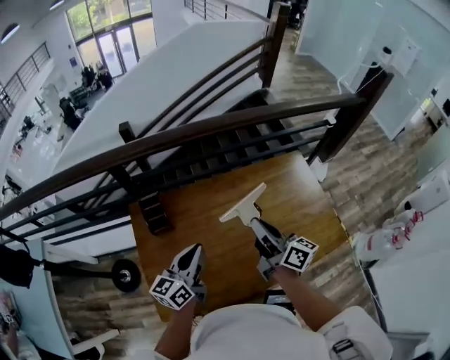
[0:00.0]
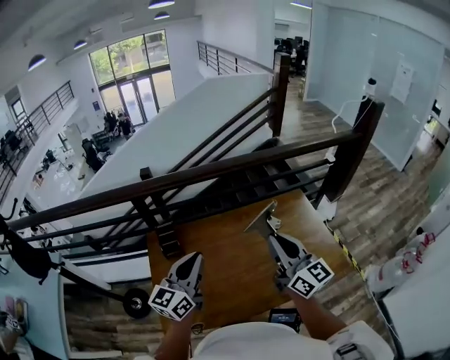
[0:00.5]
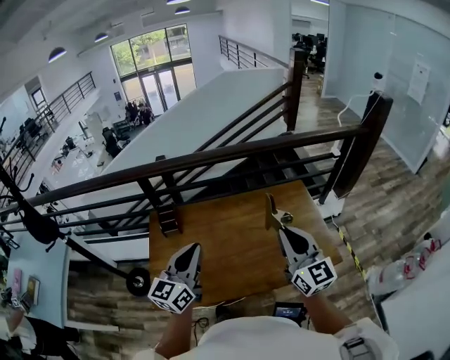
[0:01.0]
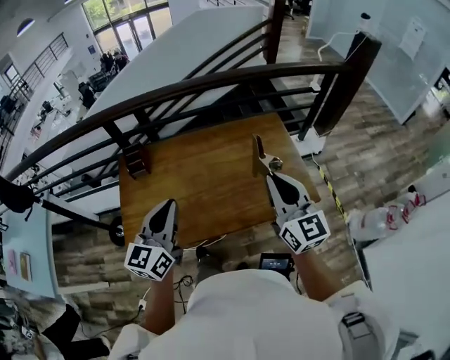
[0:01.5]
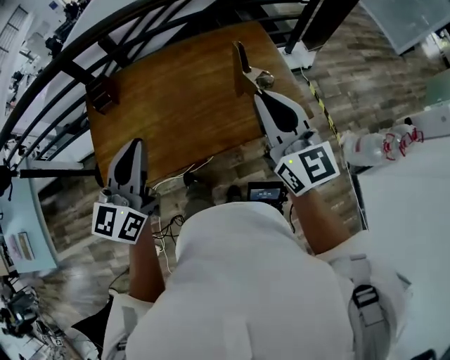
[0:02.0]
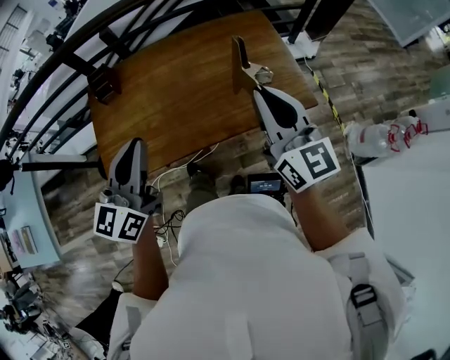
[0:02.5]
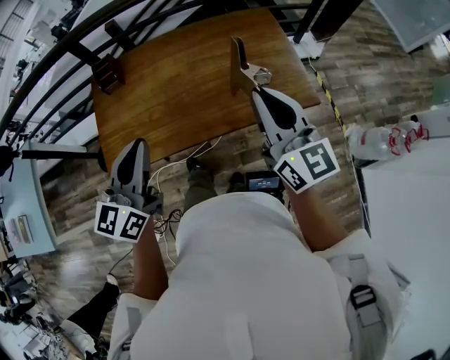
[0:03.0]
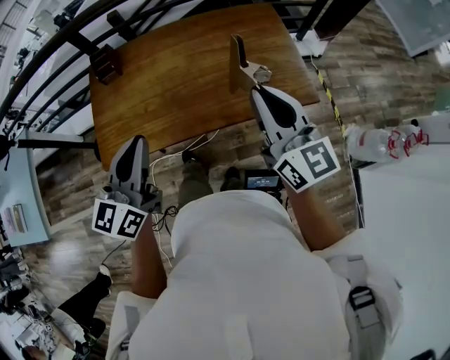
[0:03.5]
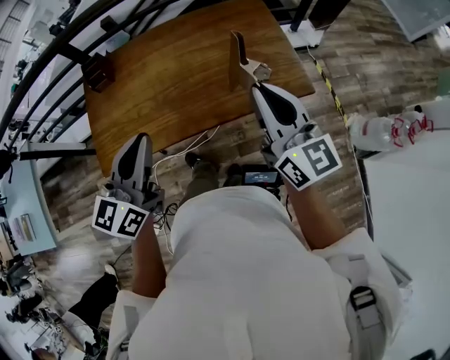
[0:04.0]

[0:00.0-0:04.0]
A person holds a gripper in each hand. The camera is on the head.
0:00.0 to 0:02.0: The right gripper heads to the right and backward, covering approximately 30 cm, and rotates around the line of its fingers by about 50 degrees, counterclockwise from behind, while the left gripper goes some 30 cm backward, to the right and upward, and turns by about 20 degrees.
0:02.0 to 0:04.0: The right gripper is displaced backward by approximately 5 cm; the left gripper travels backward and to the right by approximately 10 cm.

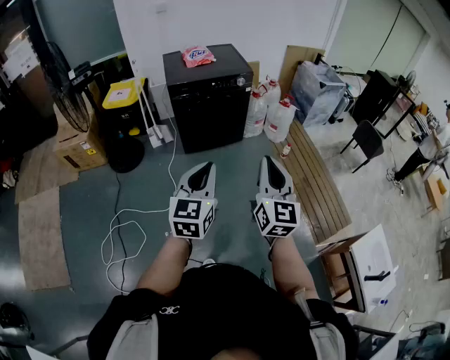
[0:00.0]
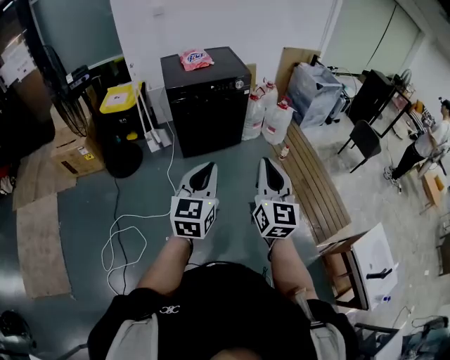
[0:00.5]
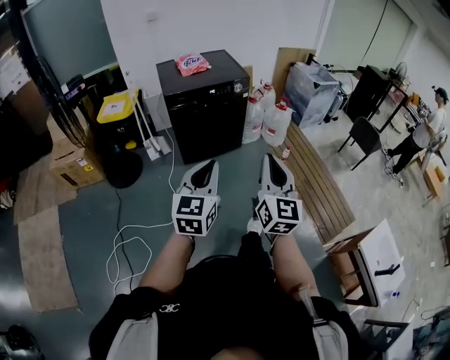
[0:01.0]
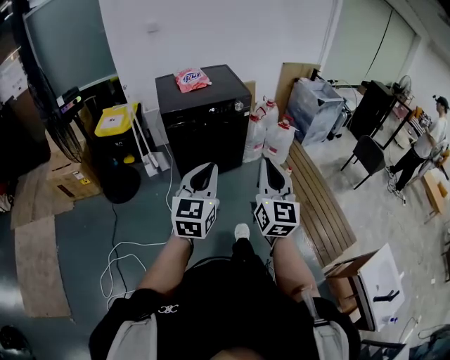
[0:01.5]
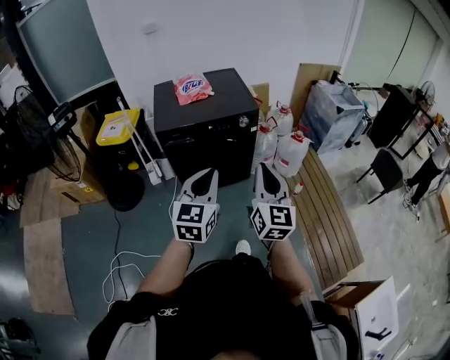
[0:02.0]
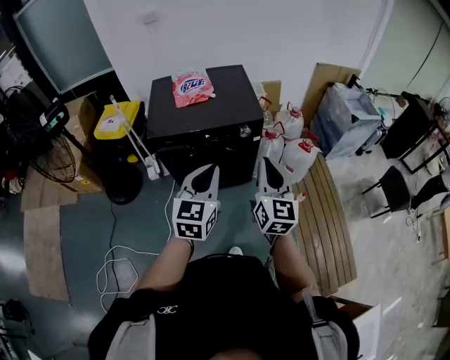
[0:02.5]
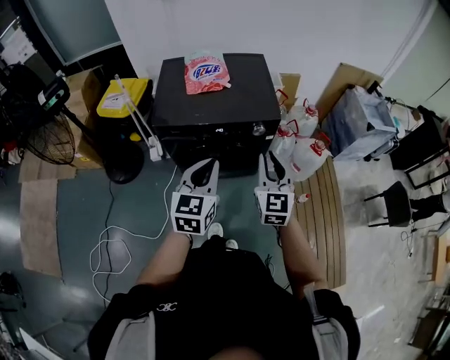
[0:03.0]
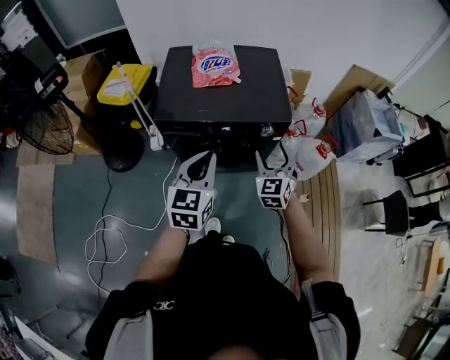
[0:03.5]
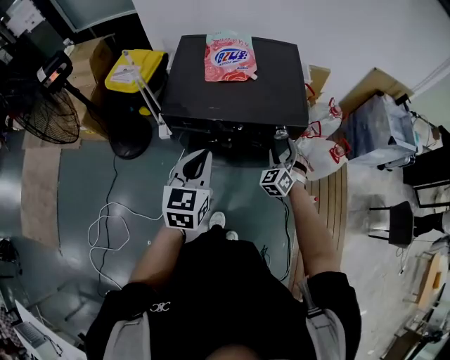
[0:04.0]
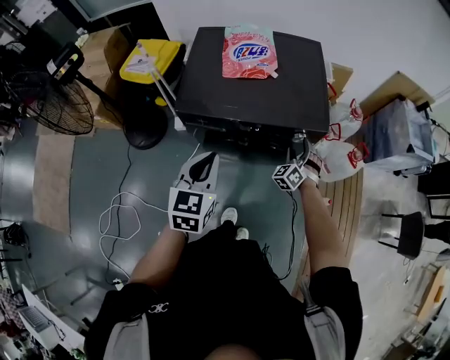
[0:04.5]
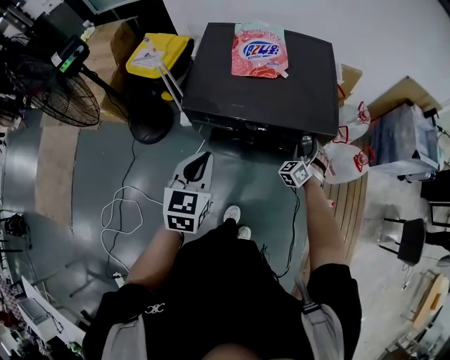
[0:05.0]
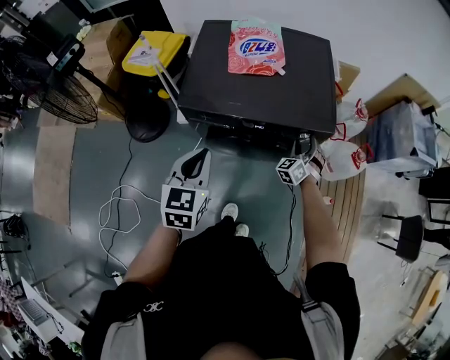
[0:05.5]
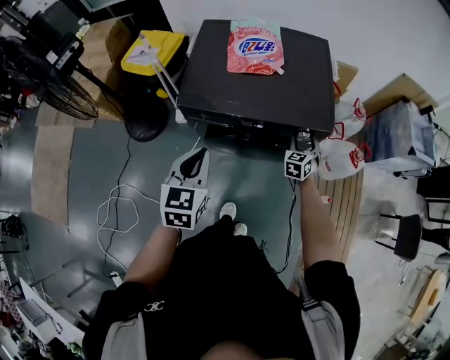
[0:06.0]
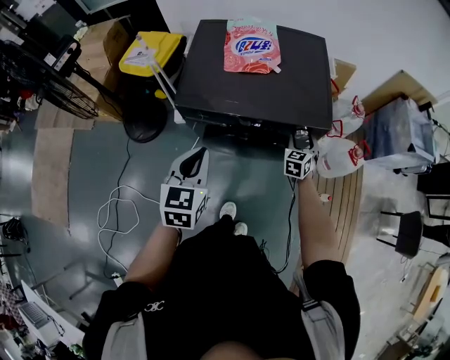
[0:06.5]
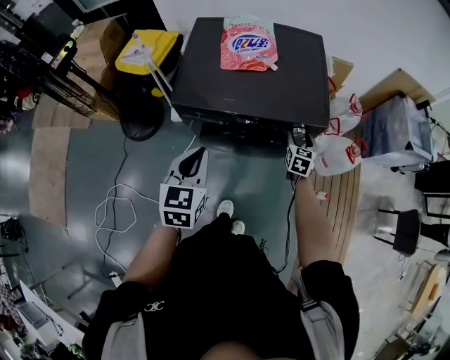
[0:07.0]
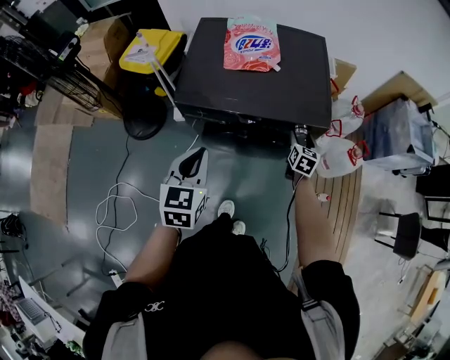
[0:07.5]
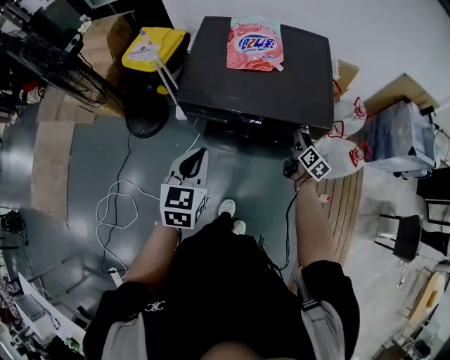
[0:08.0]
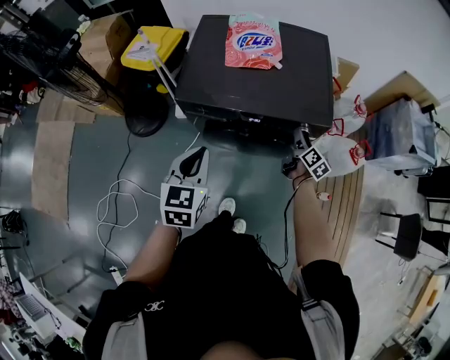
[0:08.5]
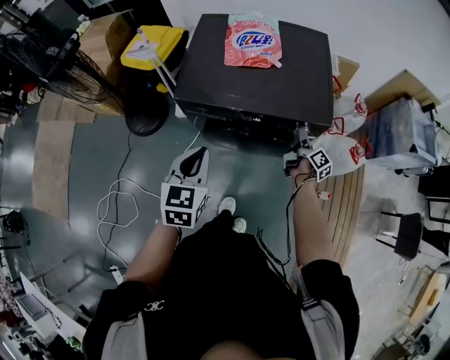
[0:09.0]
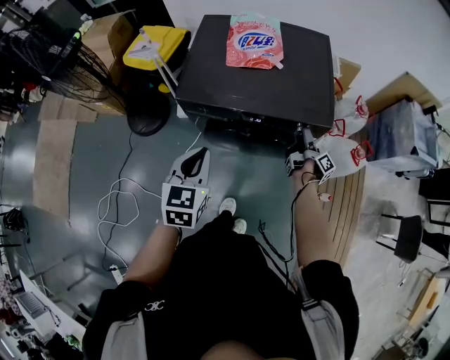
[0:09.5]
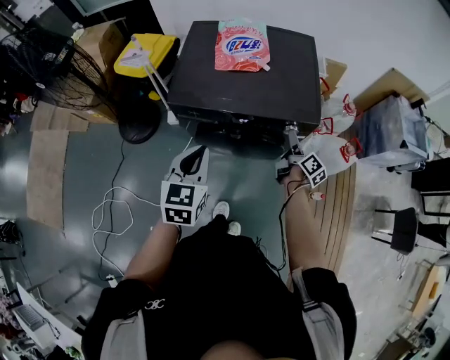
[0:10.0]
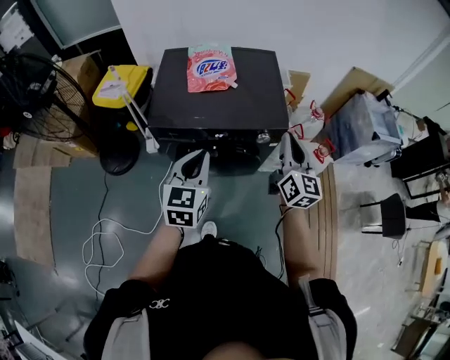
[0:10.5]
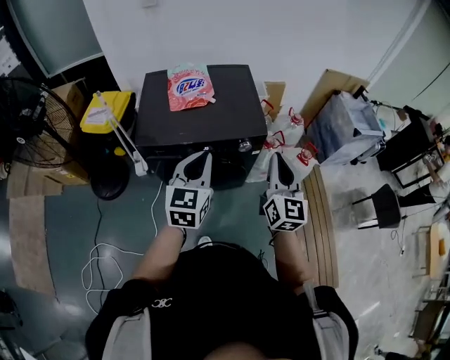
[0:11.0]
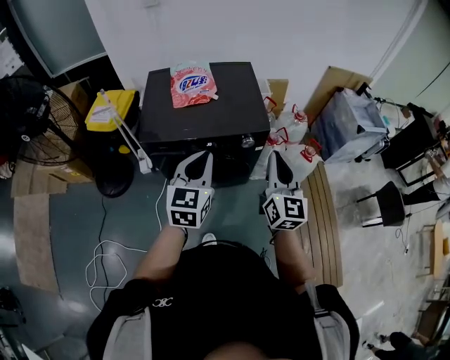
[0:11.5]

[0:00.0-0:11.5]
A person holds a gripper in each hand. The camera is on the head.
0:00.0 to 0:02.0: Both grippers travel together forward, about 35 cm.
0:02.0 to 0:04.0: The left gripper goes approximately 30 cm forward, and changes its angle by about 20 degrees; the right gripper goes some 50 cm forward and downward, rolls counterclockwise, seen from behind, by roughly 60 degrees, and opens.
0:04.0 to 0:06.0: The right gripper travels forward and downward by about 10 cm, and changes its angle by approximately 30 degrees; the left gripper is displaced to the left by some 5 cm.
0:06.0 to 0:07.5: The right gripper turns by about 30 degrees.
0:07.5 to 0:09.5: The right gripper rolls clockwise, seen from behind, by about 80 degrees.
0:09.5 to 0:11.5: The left gripper goes some 15 cm to the right and upward, and turns by some 20 degrees. Meanwhile the right gripper heads upward and backward, covering about 40 cm, rolls counterclockwise, seen from behind, by approximately 90 degrees, and closes up.

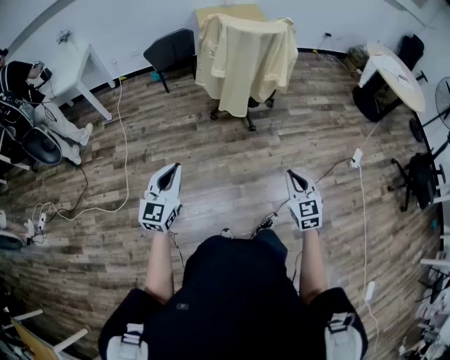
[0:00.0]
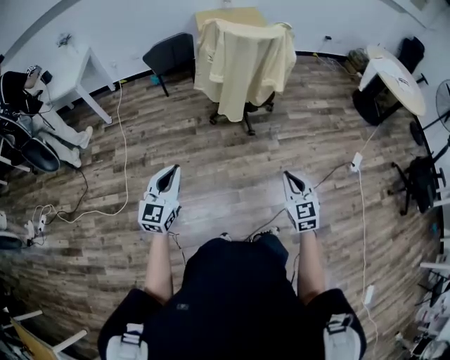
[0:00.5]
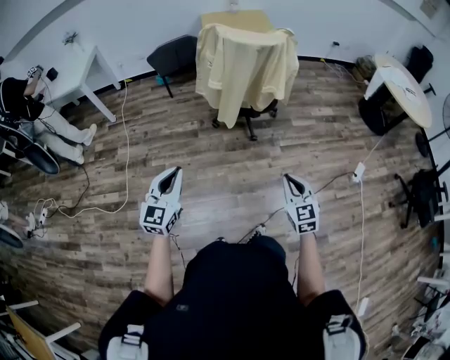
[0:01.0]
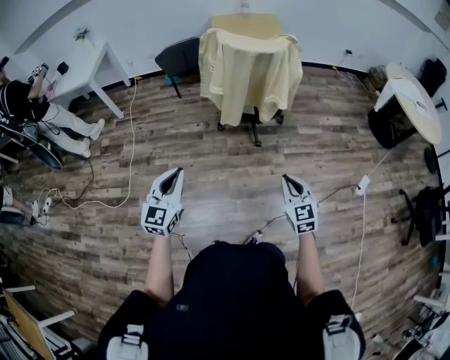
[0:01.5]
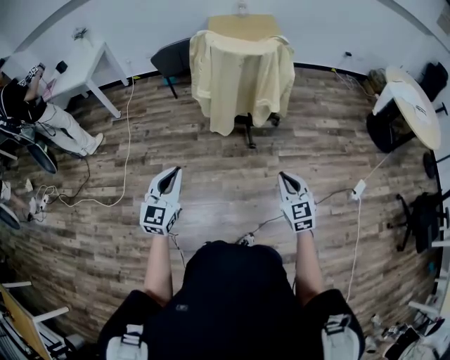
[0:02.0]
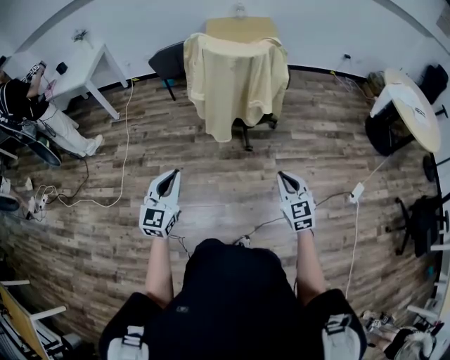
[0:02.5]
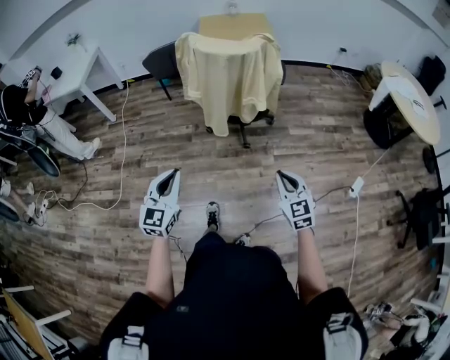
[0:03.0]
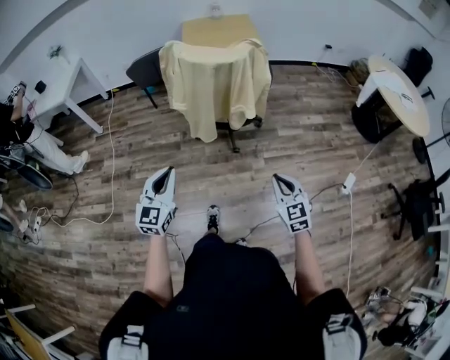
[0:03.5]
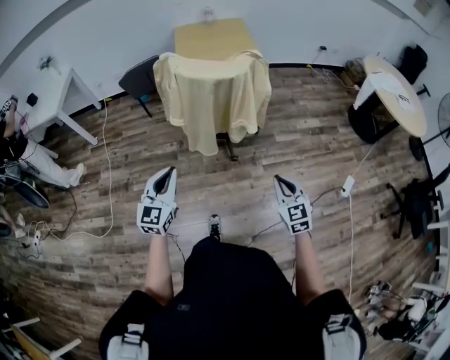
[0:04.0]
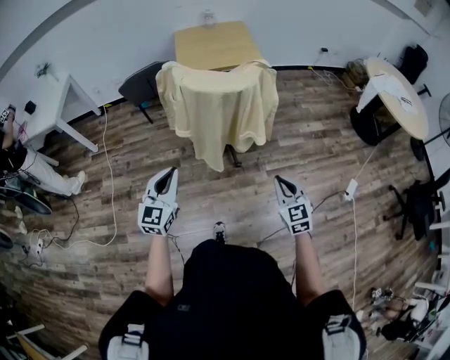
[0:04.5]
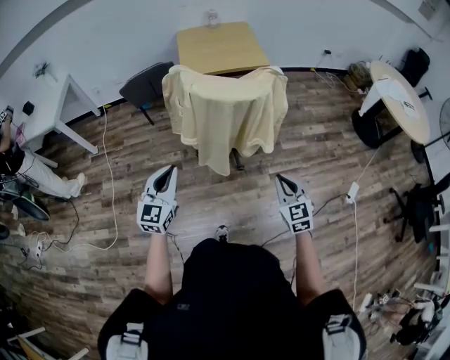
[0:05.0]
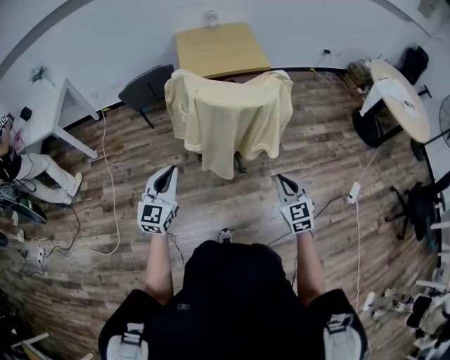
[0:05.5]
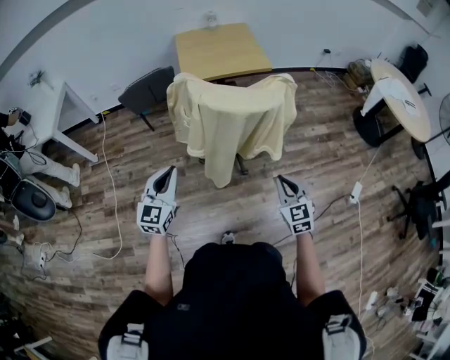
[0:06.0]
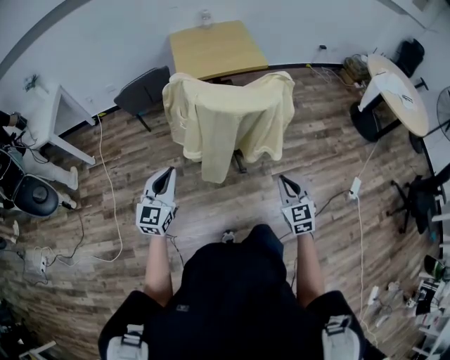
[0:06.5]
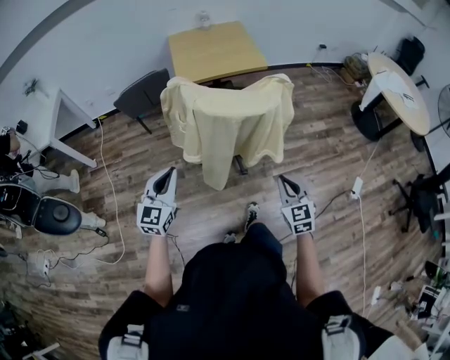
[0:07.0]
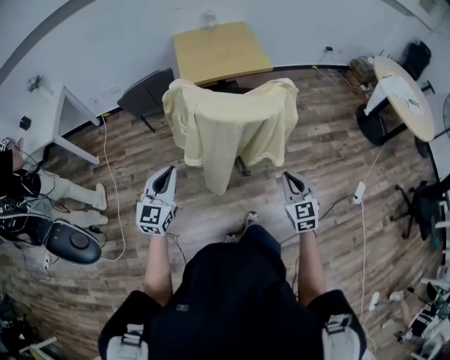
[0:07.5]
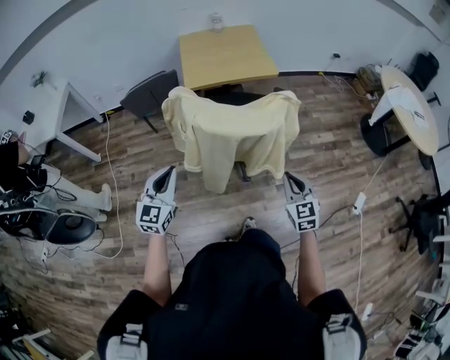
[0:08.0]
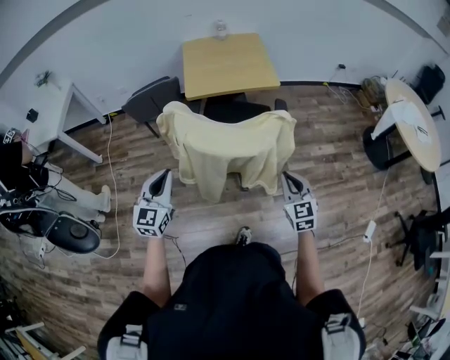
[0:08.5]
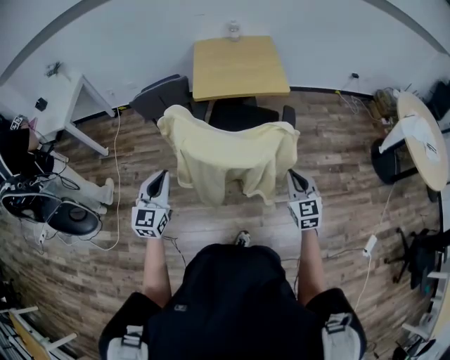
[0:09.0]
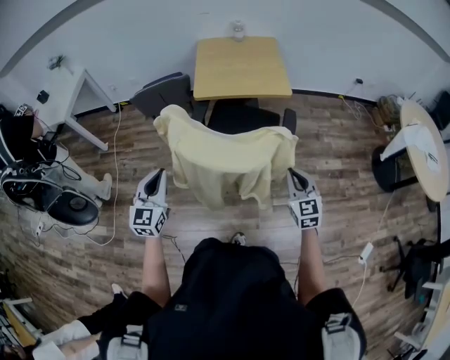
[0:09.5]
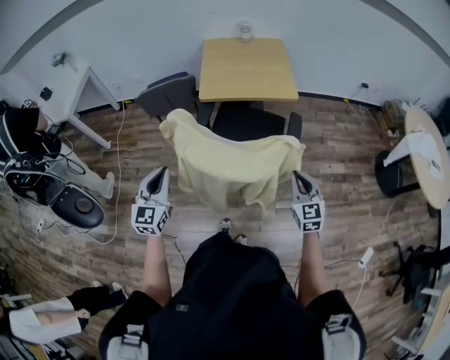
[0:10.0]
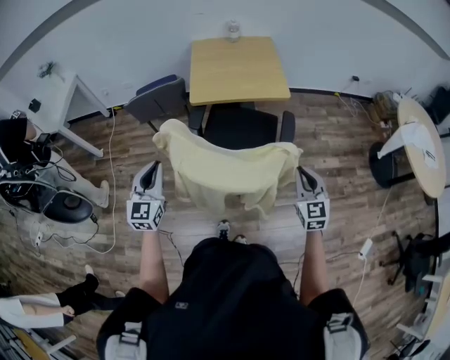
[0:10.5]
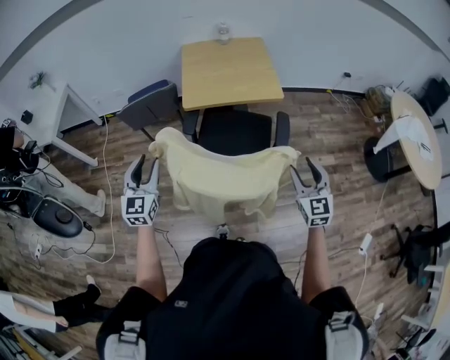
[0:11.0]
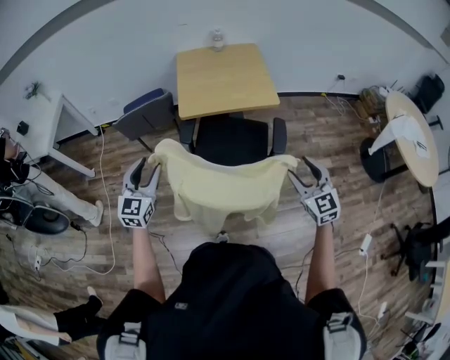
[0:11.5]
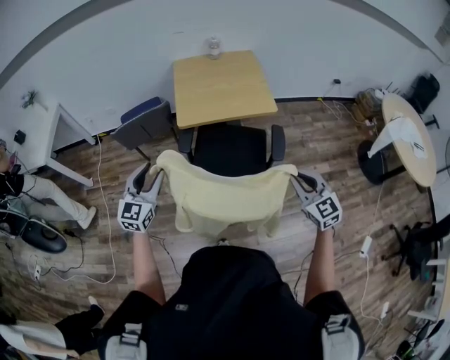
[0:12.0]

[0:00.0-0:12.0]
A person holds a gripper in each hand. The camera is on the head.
0:00.0 to 0:02.0: The left gripper moves to the right and forward, approximately 15 cm; the right gripper heads forward and to the right, covering some 20 cm.
0:02.0 to 0:04.0: The right gripper heads forward, covering approximately 10 cm, while the left gripper is displaced forward by roughly 15 cm.
0:04.0 to 0:06.0: The grippers both shift forward and to the left by about 20 cm.
0:06.0 to 0:08.0: Both grippers travel together forward, approximately 10 cm.
0:08.0 to 0:10.0: The right gripper is displaced forward by some 15 cm. Meanwhile the left gripper is displaced forward by about 10 cm.
0:10.0 to 0:12.0: The left gripper heads forward, covering some 15 cm, and opens up; the right gripper goes approximately 10 cm forward and upward, and opens and closes again.
